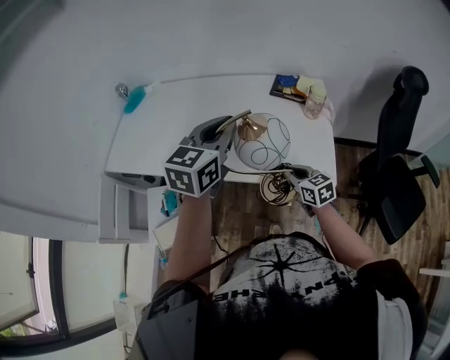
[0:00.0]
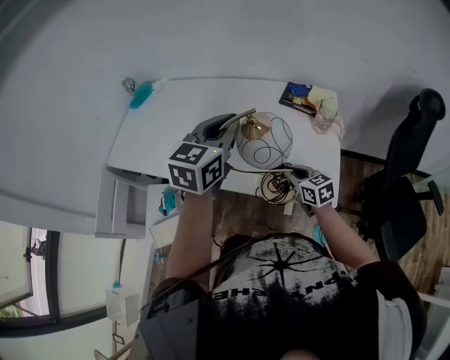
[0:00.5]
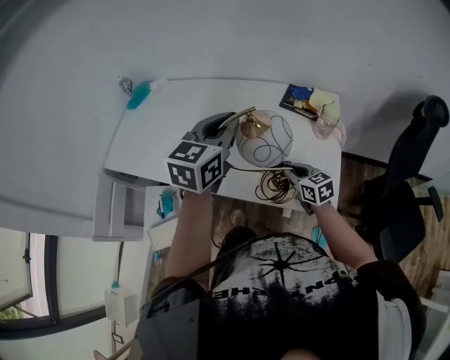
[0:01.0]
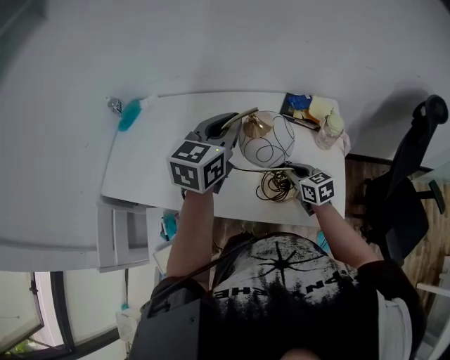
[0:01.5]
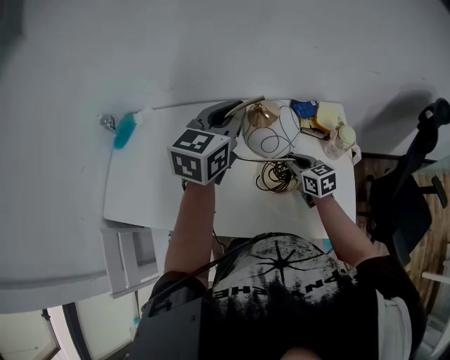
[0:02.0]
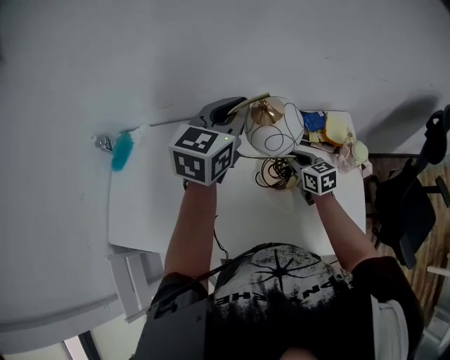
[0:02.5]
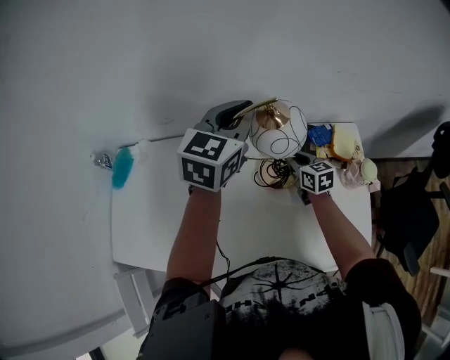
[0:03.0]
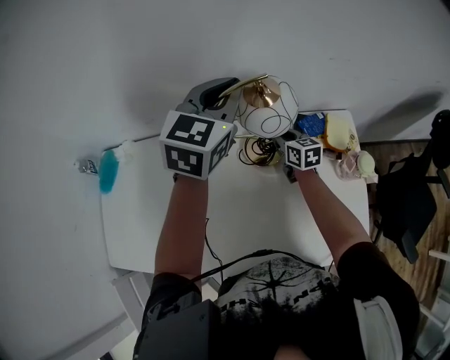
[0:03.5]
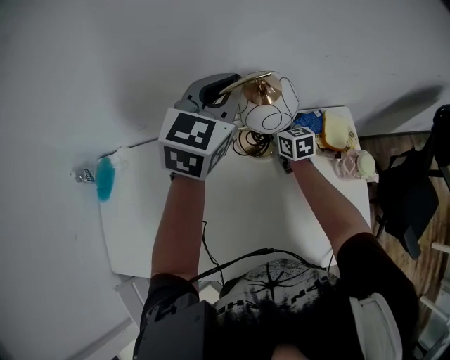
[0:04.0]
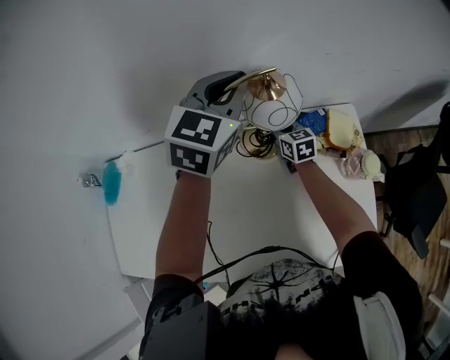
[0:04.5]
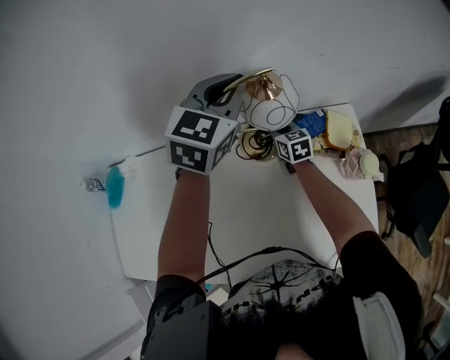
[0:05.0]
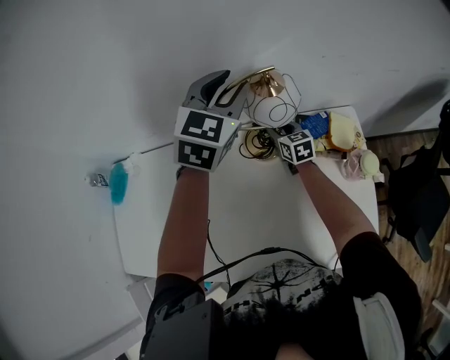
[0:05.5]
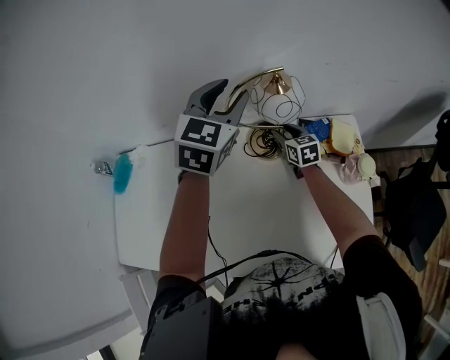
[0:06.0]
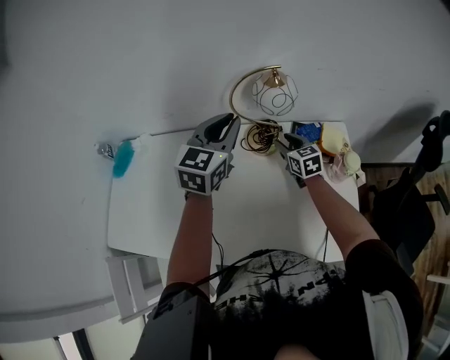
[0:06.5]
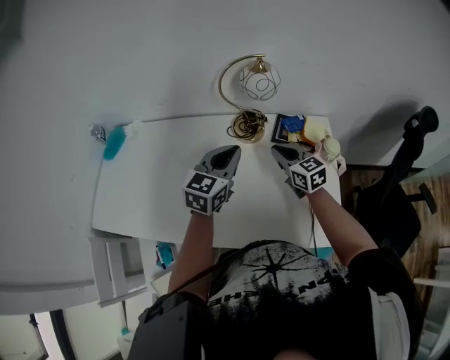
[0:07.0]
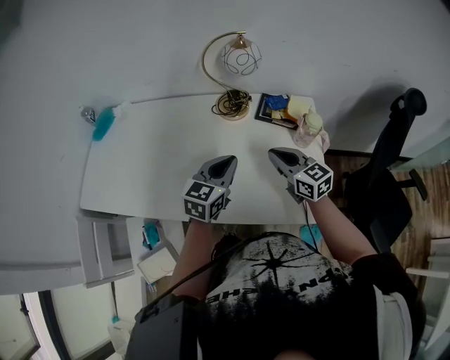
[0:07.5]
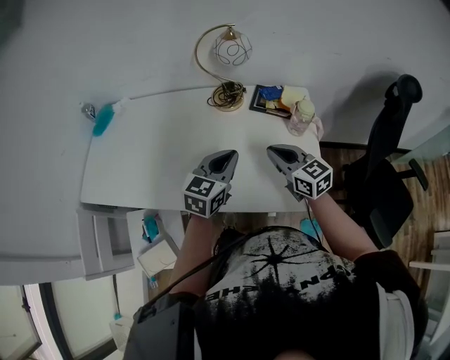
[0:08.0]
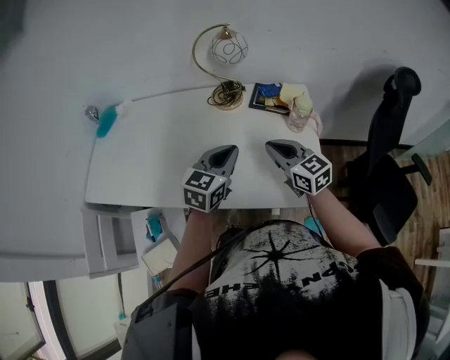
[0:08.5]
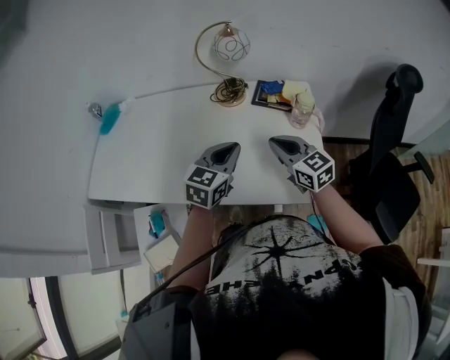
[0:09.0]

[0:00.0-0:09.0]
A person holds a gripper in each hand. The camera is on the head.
0:00.0 to 0:02.0: The grippers both shift forward by about 25 cm.
0:02.0 to 0:04.5: Both grippers move forward, roughly 25 cm.
0:04.5 to 0:07.0: The right gripper goes roughly 25 cm backward and upward, swivels about 20 degrees, and opens, then closes again; the left gripper shifts about 25 cm backward, and opens and closes again.
0:07.0 to 0:09.0: Both grippers travel together backward, roughly 15 cm.

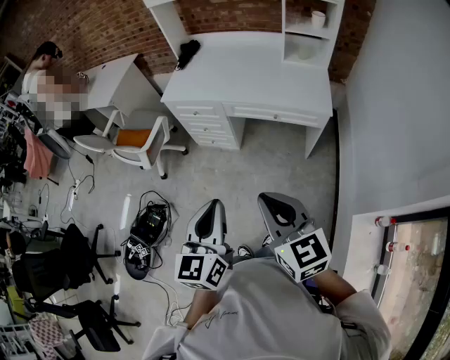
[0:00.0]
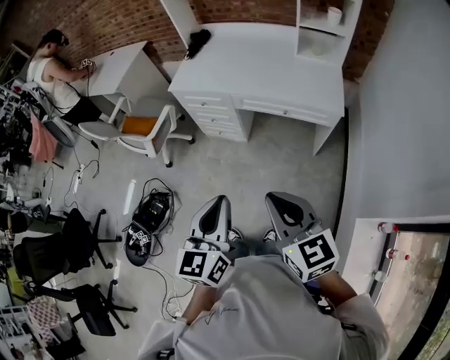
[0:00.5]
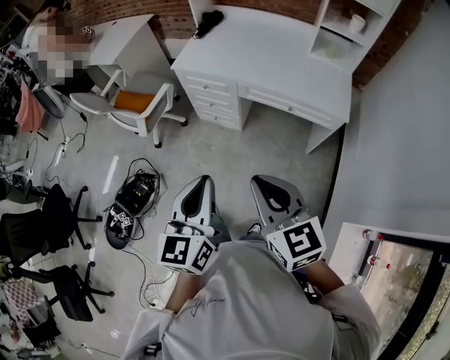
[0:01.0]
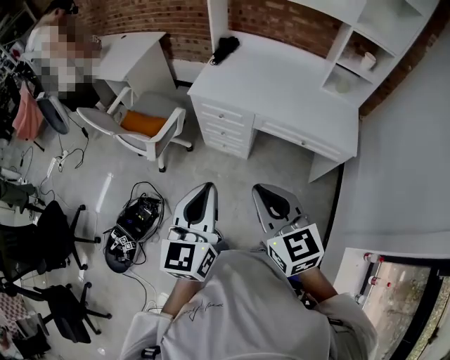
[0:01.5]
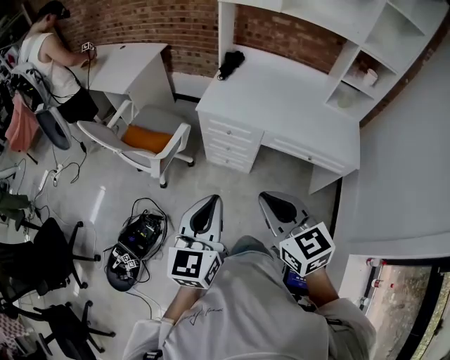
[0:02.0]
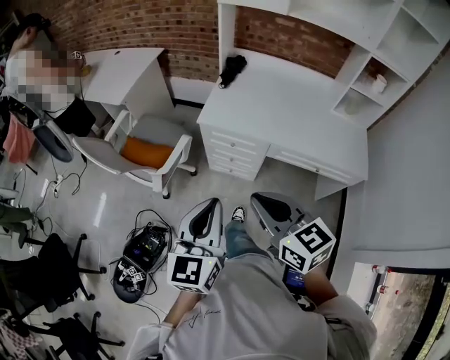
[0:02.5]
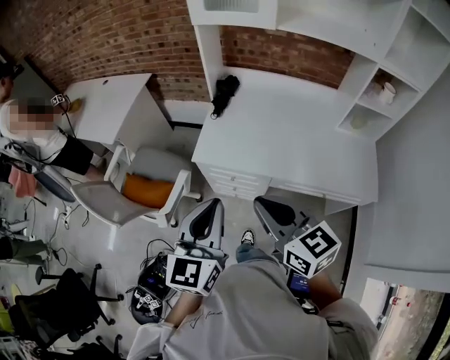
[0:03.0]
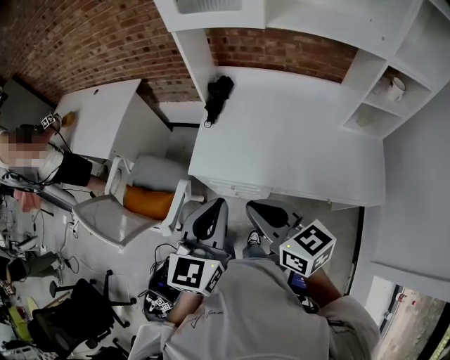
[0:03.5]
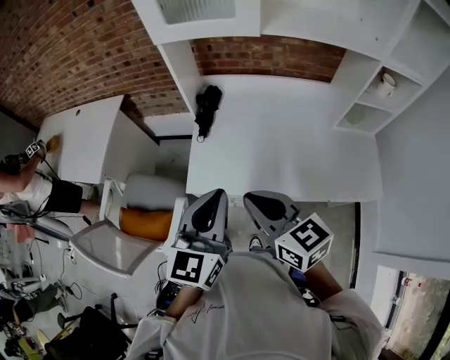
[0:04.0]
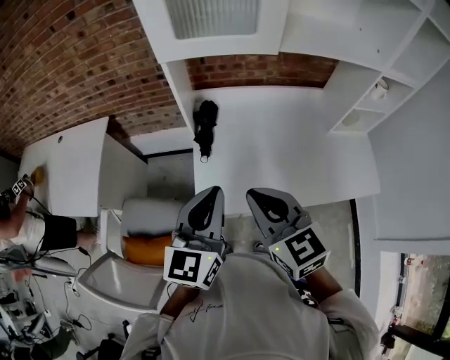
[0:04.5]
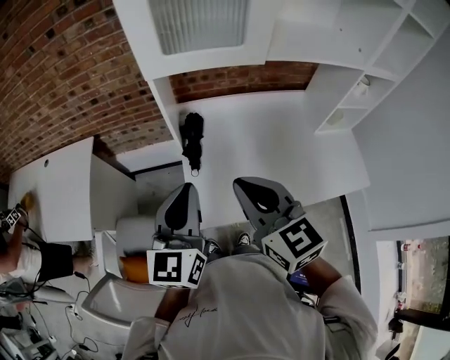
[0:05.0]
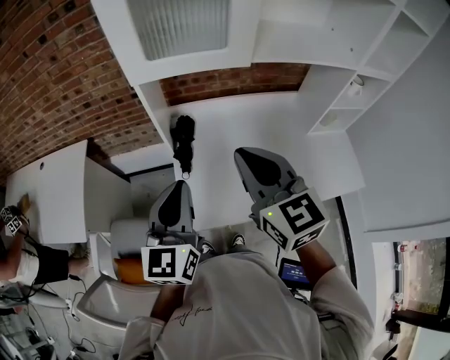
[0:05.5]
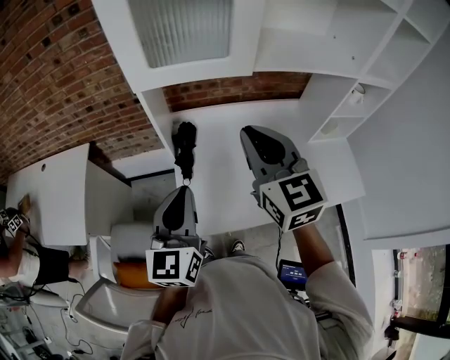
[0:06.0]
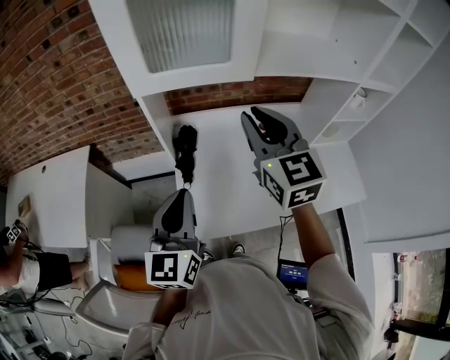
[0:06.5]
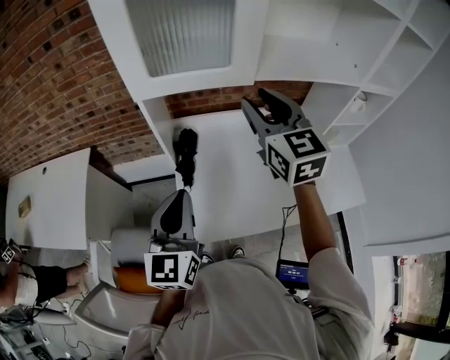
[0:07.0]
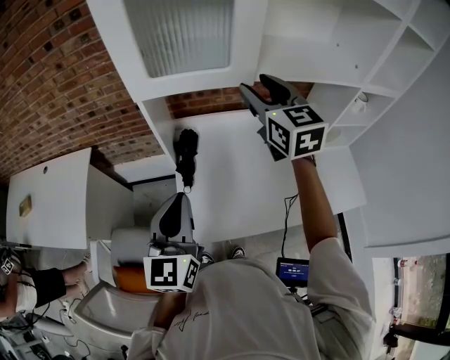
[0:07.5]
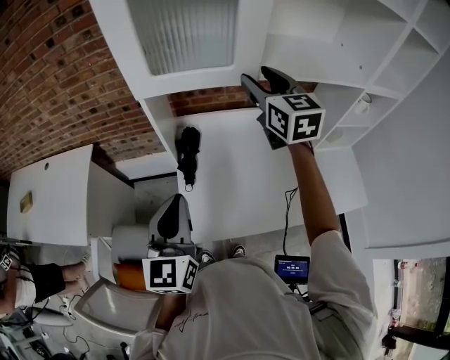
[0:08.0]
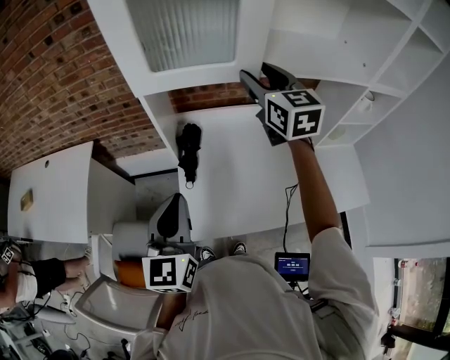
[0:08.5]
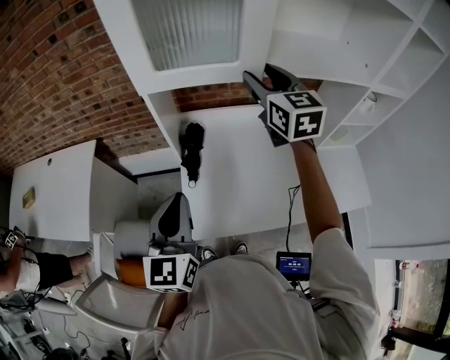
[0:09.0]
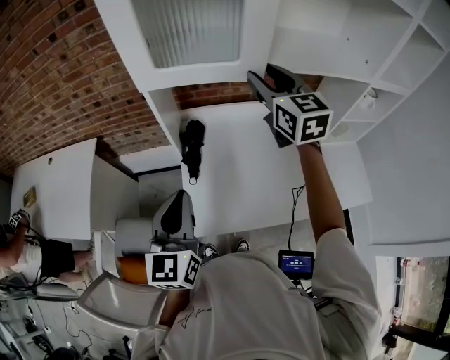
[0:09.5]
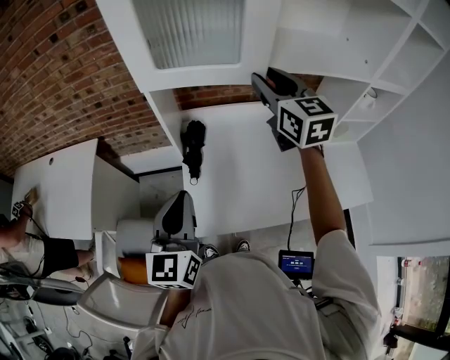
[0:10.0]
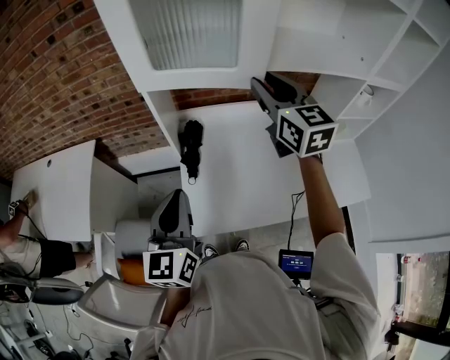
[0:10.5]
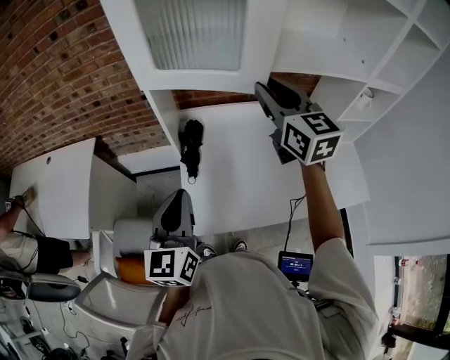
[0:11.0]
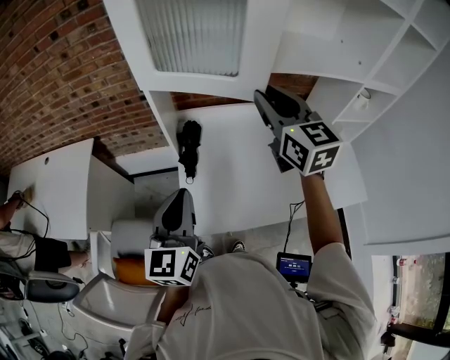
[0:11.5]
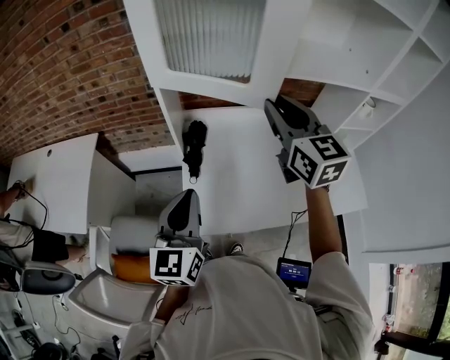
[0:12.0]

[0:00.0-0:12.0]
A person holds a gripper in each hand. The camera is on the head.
0:00.0 to 0:02.0: Both grippers move to the left and forward, approximately 25 cm.
0:02.0 to 0:04.0: The two grippers travel together, forward, about 40 cm.
0:04.0 to 0:06.0: The right gripper goes some 25 cm forward and upward, and swivels approximately 40 degrees. The left gripper is displaced forward and to the left by approximately 20 cm.
0:06.0 to 0:08.0: The right gripper is displaced forward by some 15 cm, and opens up.
0:08.0 to 0:10.0: The grippers move only a little.
0:10.0 to 0:12.0: The right gripper travels backward by some 10 cm.

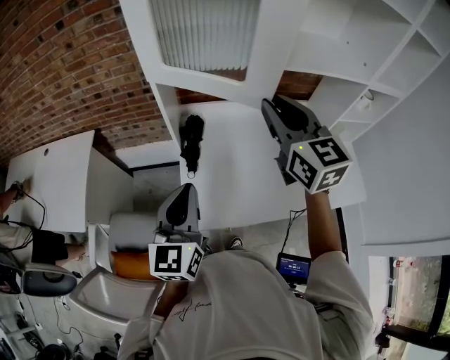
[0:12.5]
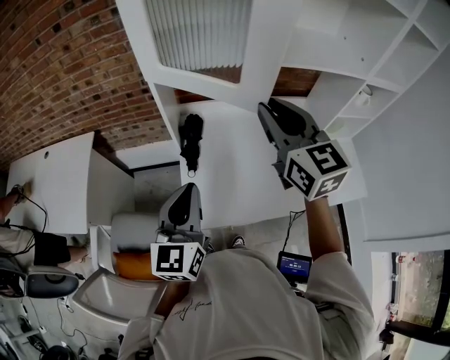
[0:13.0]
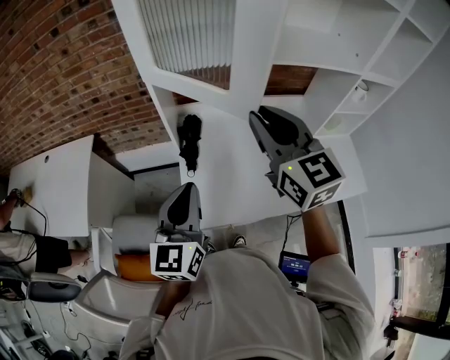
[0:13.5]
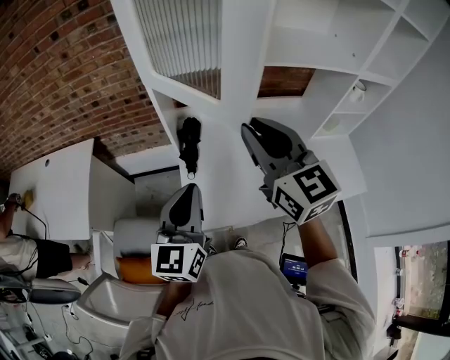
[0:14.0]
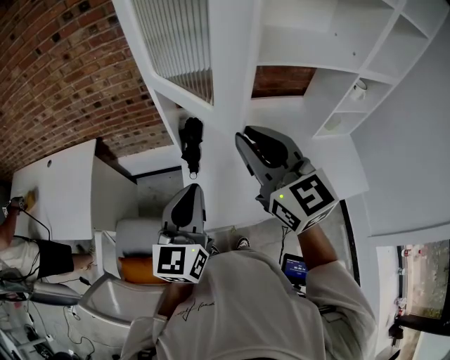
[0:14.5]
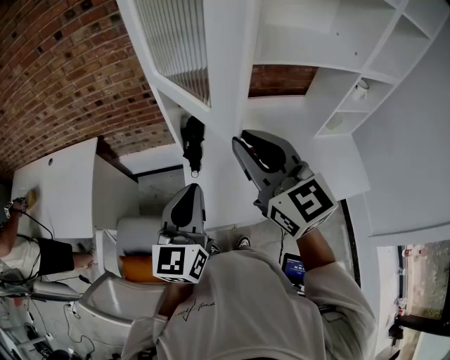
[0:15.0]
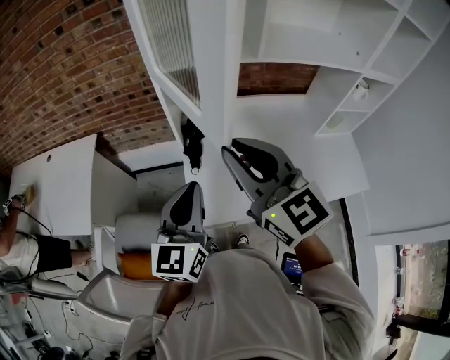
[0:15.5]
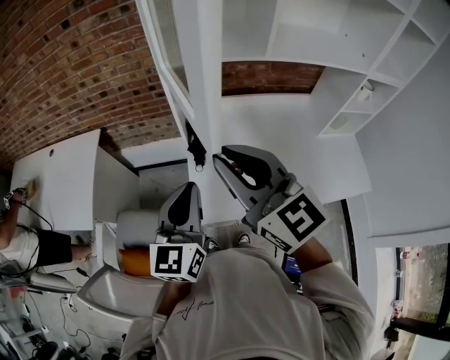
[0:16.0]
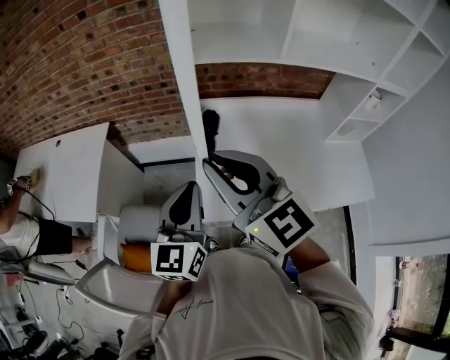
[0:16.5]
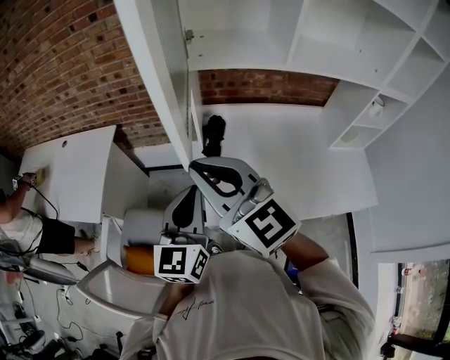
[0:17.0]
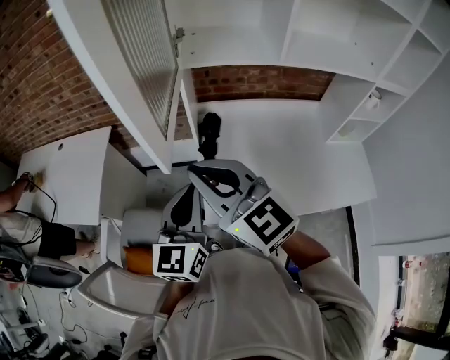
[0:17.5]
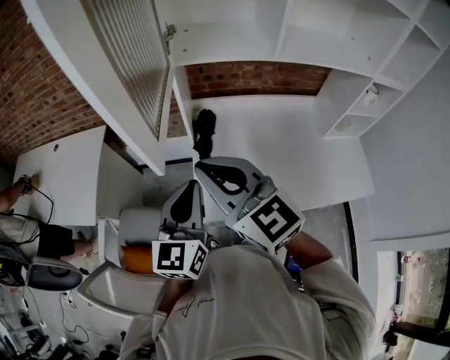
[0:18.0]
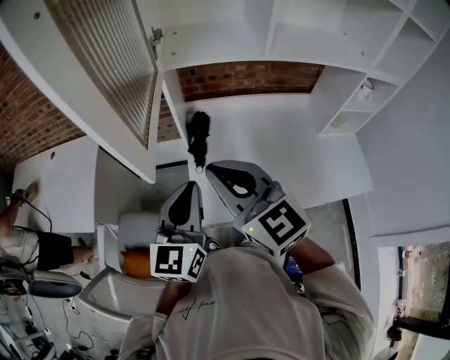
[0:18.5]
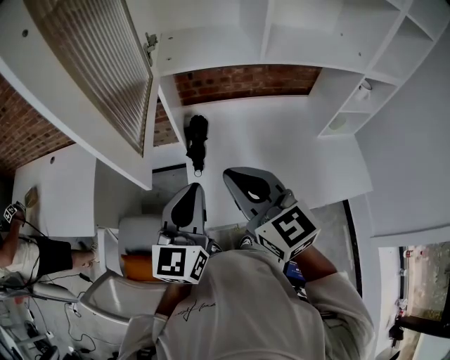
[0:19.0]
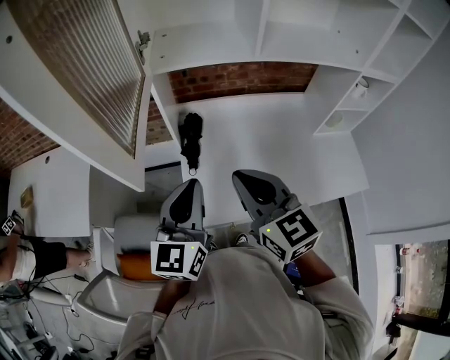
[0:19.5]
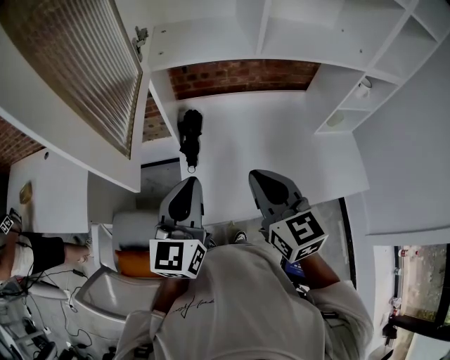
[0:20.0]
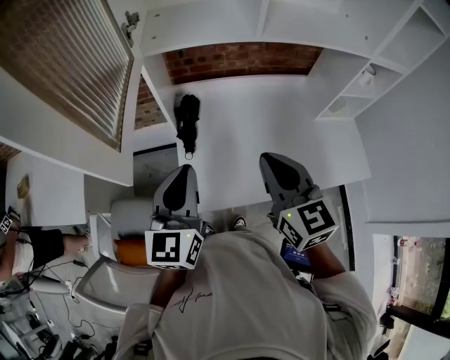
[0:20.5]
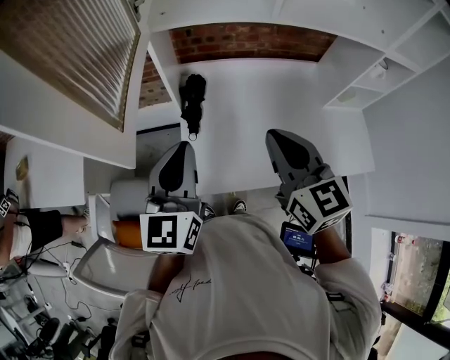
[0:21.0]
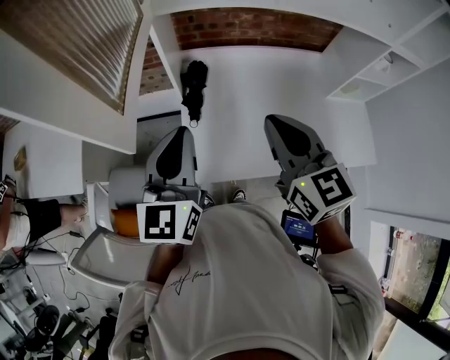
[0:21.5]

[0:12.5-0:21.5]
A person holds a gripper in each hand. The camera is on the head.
0:12.5 to 0:14.5: The right gripper shifts roughly 10 cm backward and to the left.
0:14.5 to 0:17.0: The left gripper is displaced to the left by about 5 cm. Meanwhile the right gripper shifts roughly 15 cm to the left.
0:17.0 to 0:19.5: The left gripper is displaced to the right by about 5 cm. Meanwhile the right gripper heads to the right and downward, covering roughly 15 cm, and rotates some 20 degrees.
0:19.5 to 0:21.5: The right gripper changes place by roughly 5 cm.
